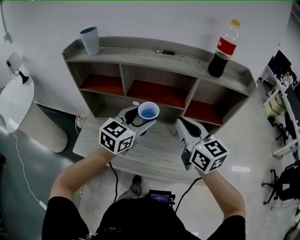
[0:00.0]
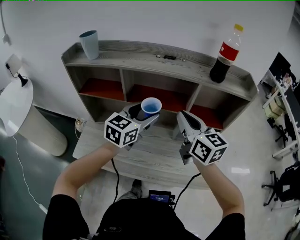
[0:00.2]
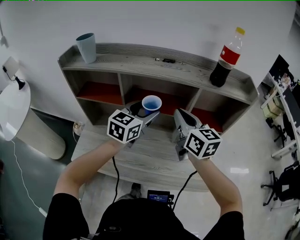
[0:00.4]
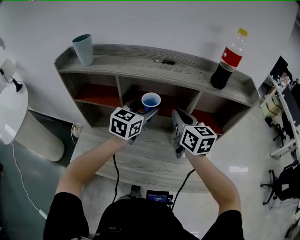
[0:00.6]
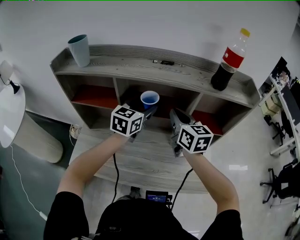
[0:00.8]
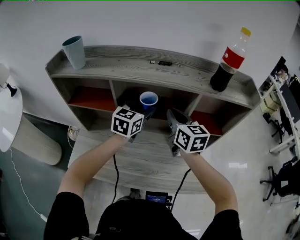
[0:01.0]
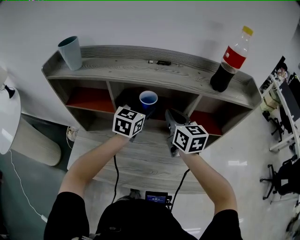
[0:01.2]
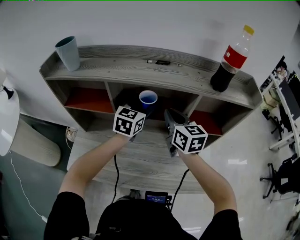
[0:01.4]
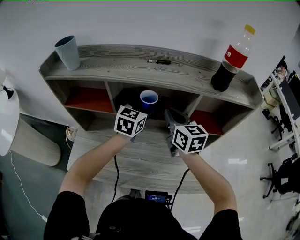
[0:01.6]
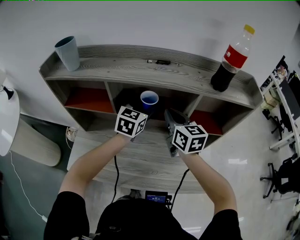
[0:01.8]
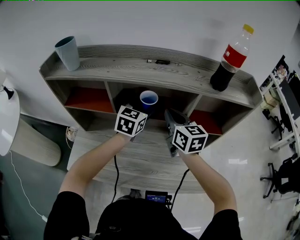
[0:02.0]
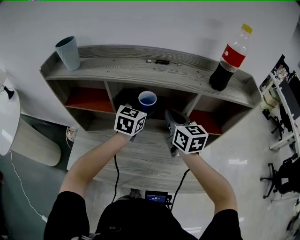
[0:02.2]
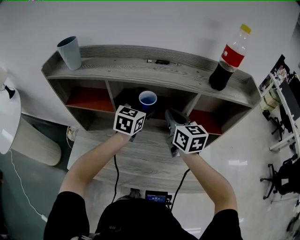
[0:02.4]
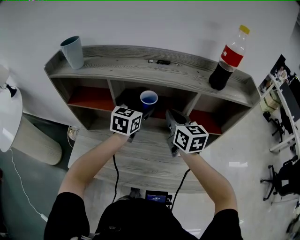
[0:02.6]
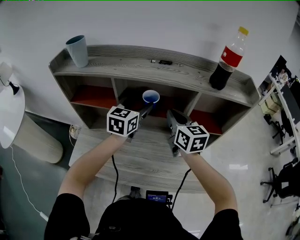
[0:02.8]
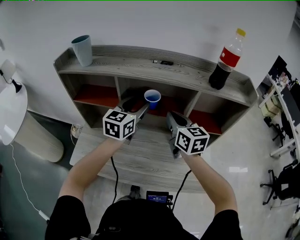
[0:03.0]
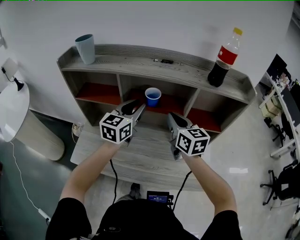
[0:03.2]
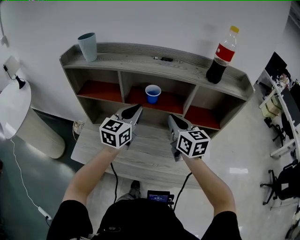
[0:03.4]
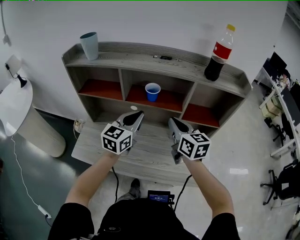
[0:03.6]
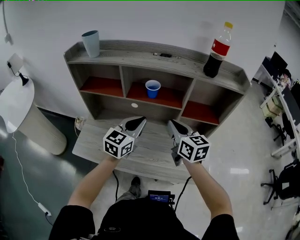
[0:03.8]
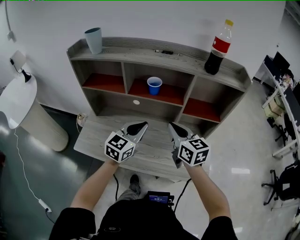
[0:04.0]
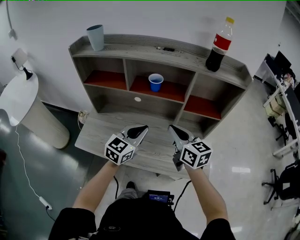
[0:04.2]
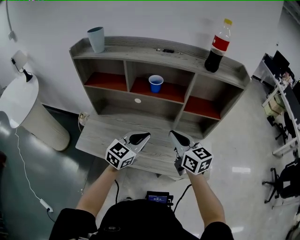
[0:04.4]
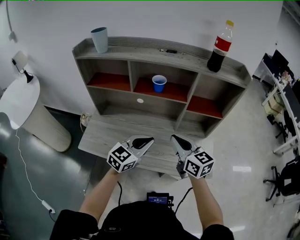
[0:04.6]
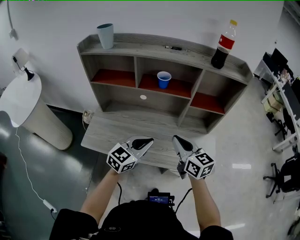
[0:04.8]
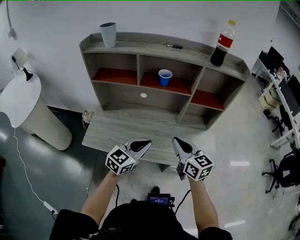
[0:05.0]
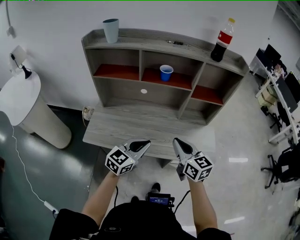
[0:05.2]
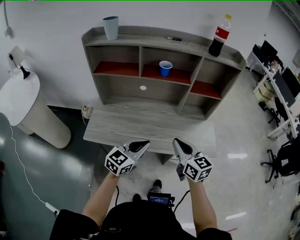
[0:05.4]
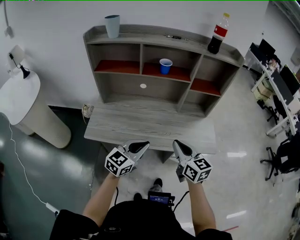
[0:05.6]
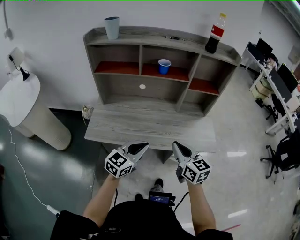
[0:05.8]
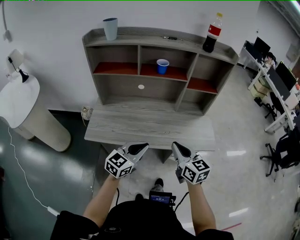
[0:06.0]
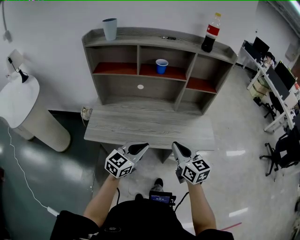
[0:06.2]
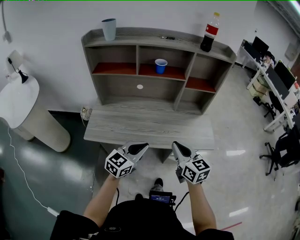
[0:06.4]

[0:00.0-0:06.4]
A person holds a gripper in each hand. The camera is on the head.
0:00.0 to 0:01.6: The two grippers go roughly 20 cm forward.
0:01.6 to 0:03.2: The right gripper goes roughly 5 cm backward, while the left gripper goes approximately 10 cm backward, to the left and upward, and closes its fingers.
0:03.2 to 0:04.8: The left gripper shifts roughly 25 cm backward and downward, and rotates roughly 20 degrees, while the right gripper shifts about 20 cm backward.
0:04.8 to 0:06.4: The grippers both shift backward by about 15 cm.

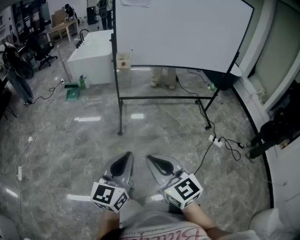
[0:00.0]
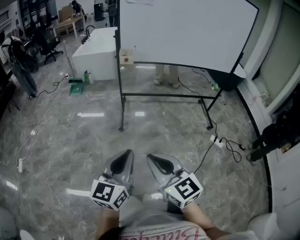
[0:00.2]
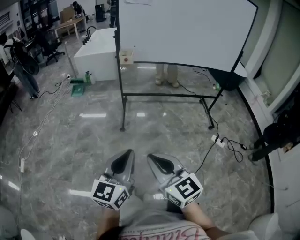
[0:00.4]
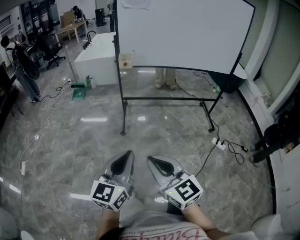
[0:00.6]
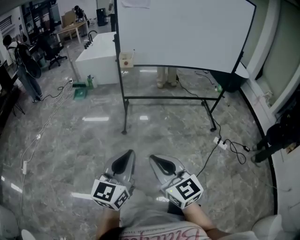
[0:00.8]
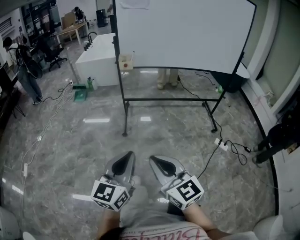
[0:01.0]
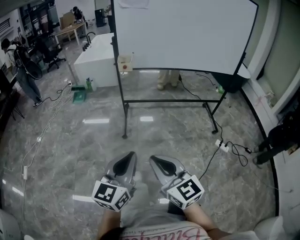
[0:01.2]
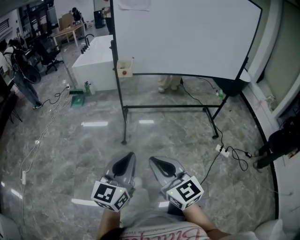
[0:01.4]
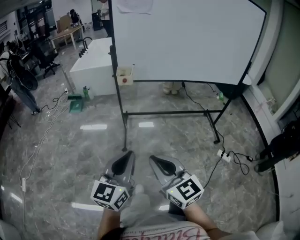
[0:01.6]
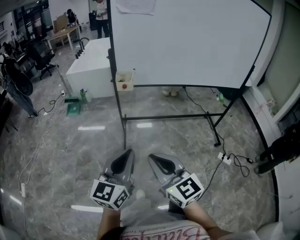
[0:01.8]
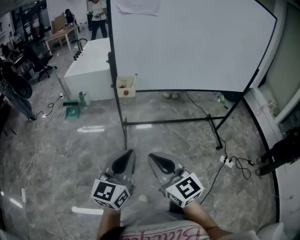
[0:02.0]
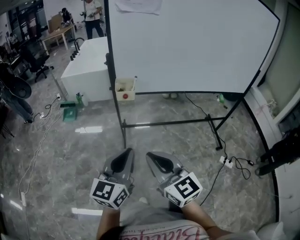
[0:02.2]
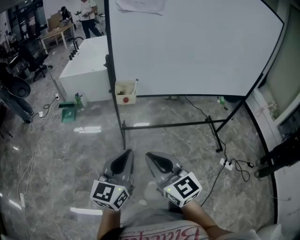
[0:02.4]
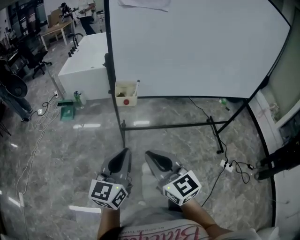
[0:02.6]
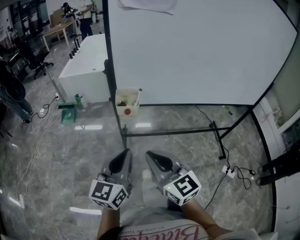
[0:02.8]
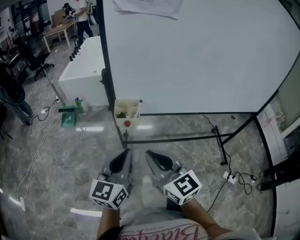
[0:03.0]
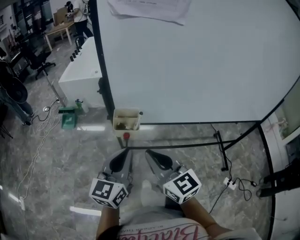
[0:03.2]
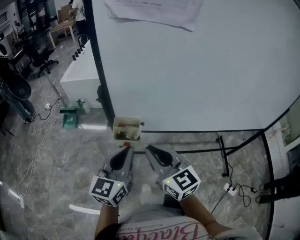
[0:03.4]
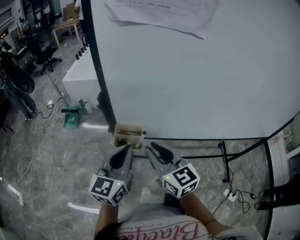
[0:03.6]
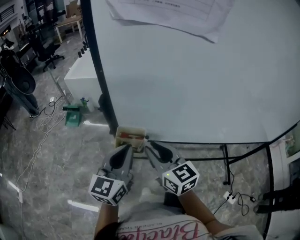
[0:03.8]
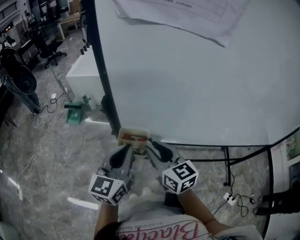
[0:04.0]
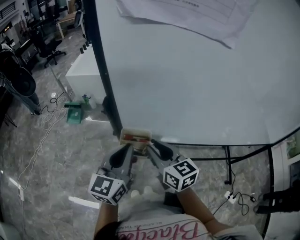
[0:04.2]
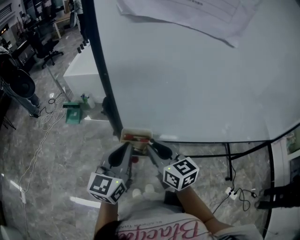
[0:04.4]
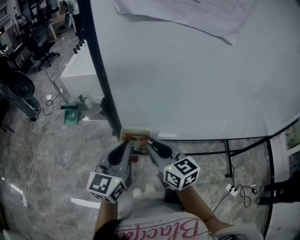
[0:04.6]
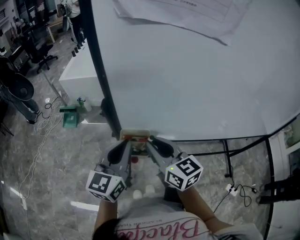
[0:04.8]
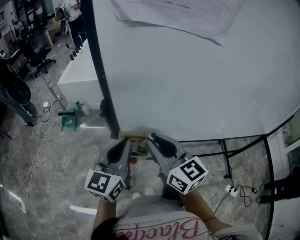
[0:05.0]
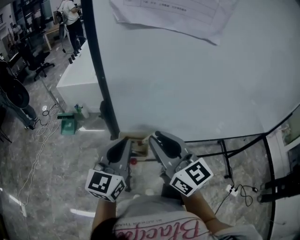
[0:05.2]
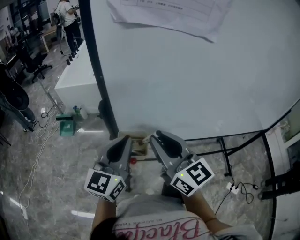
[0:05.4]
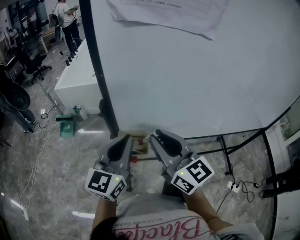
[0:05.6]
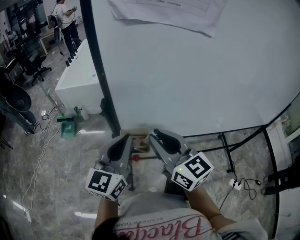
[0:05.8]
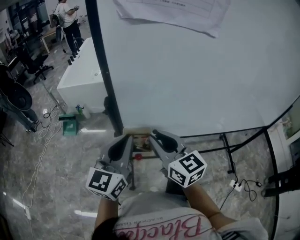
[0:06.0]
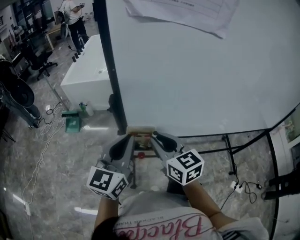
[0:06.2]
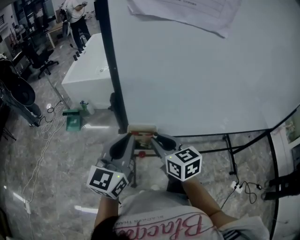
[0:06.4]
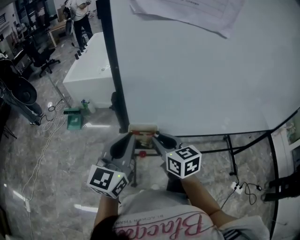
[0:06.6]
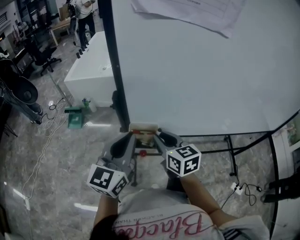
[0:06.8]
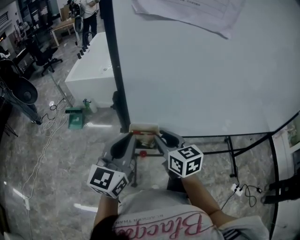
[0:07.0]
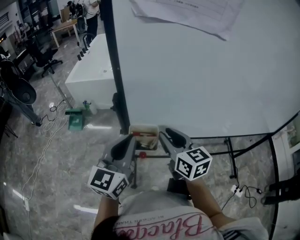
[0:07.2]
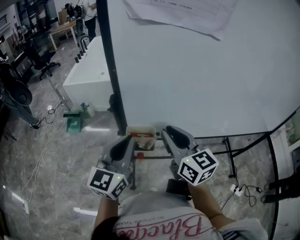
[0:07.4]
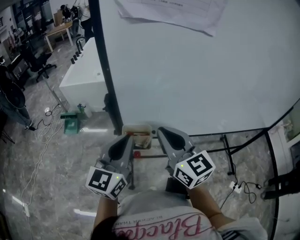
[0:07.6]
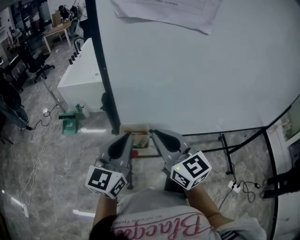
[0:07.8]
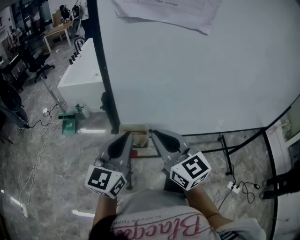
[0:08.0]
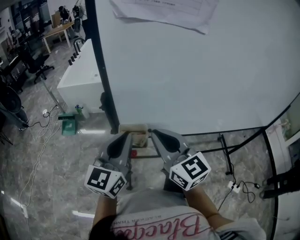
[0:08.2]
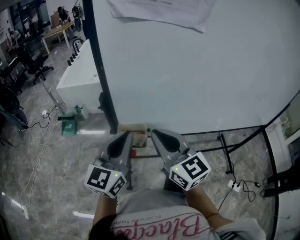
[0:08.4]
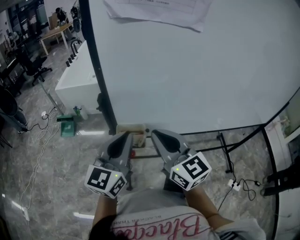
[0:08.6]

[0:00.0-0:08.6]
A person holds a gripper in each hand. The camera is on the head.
0:00.0 to 0:01.4: The two grippers go roughly 5 cm forward.
0:01.4 to 0:02.8: The two grippers go roughly 35 cm forward.
0:02.8 to 0:04.4: Both grippers move forward, approximately 20 cm.
0:04.4 to 0:05.8: The left gripper moves upward, about 5 cm; the right gripper heads upward, covering roughly 10 cm.
0:05.8 to 0:07.2: The right gripper moves downward, some 5 cm.
0:07.2 to 0:08.6: The right gripper moves upward, approximately 5 cm, and closes its fingers.

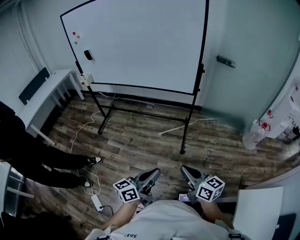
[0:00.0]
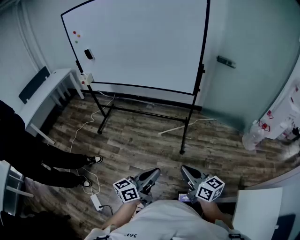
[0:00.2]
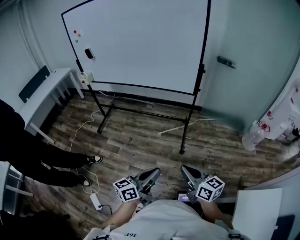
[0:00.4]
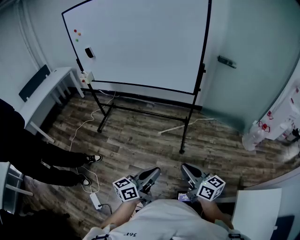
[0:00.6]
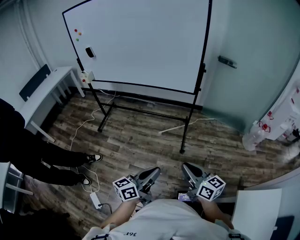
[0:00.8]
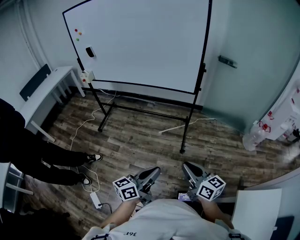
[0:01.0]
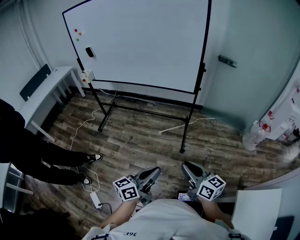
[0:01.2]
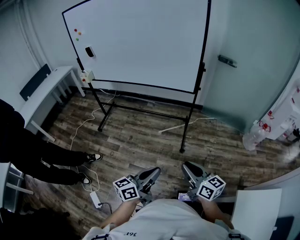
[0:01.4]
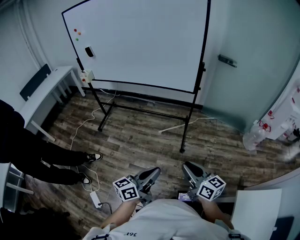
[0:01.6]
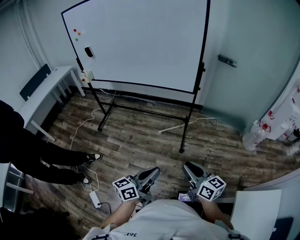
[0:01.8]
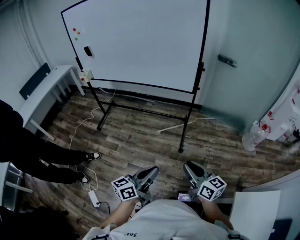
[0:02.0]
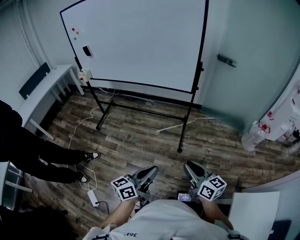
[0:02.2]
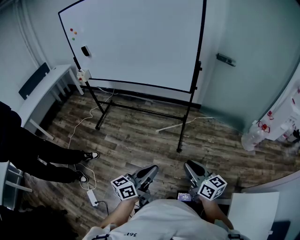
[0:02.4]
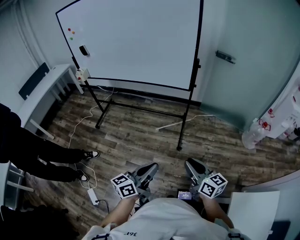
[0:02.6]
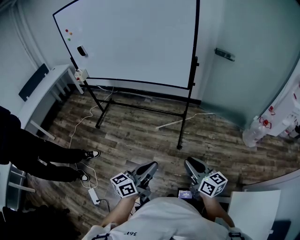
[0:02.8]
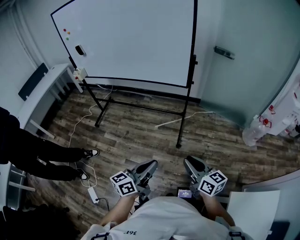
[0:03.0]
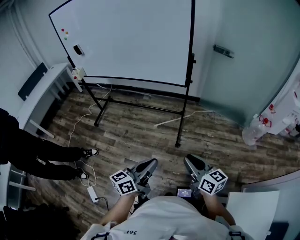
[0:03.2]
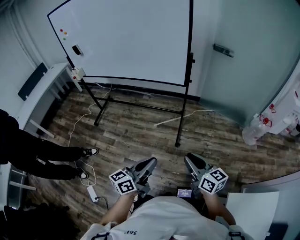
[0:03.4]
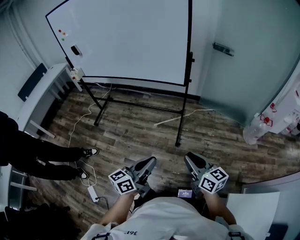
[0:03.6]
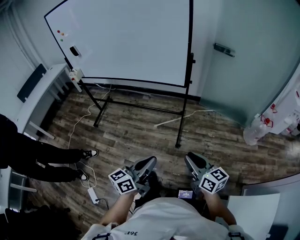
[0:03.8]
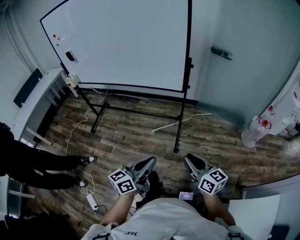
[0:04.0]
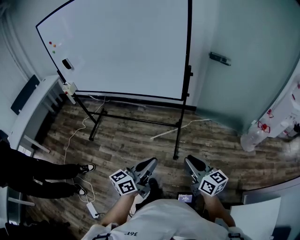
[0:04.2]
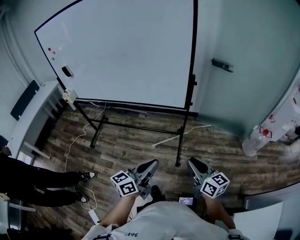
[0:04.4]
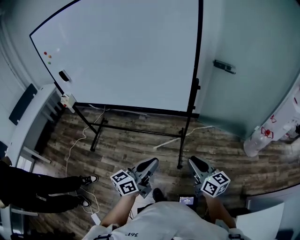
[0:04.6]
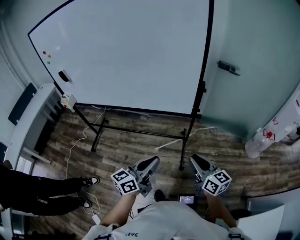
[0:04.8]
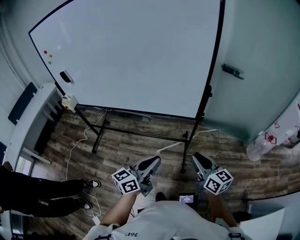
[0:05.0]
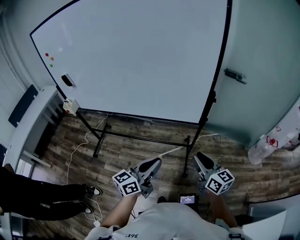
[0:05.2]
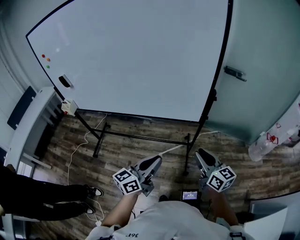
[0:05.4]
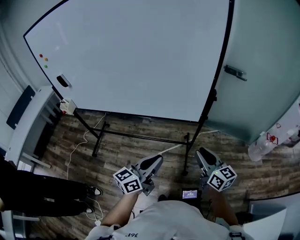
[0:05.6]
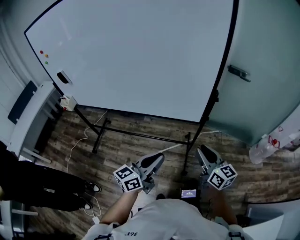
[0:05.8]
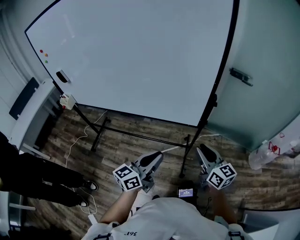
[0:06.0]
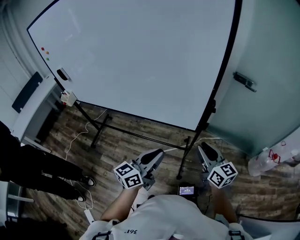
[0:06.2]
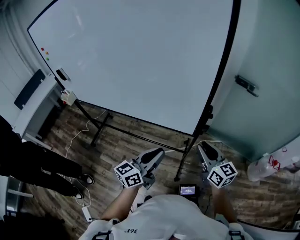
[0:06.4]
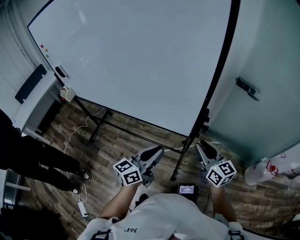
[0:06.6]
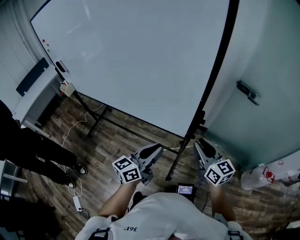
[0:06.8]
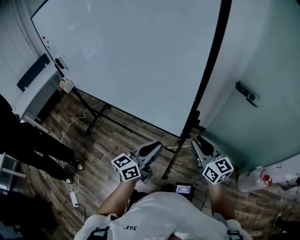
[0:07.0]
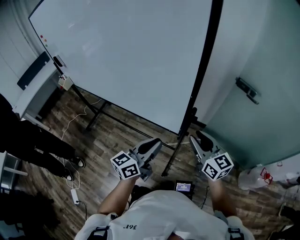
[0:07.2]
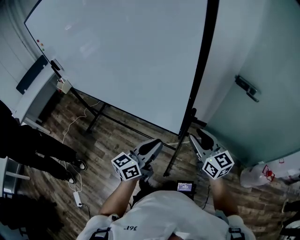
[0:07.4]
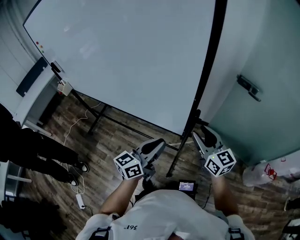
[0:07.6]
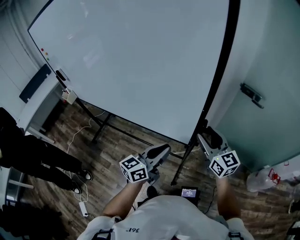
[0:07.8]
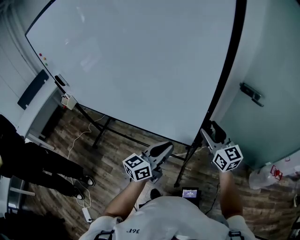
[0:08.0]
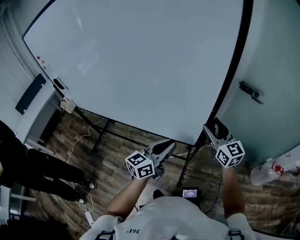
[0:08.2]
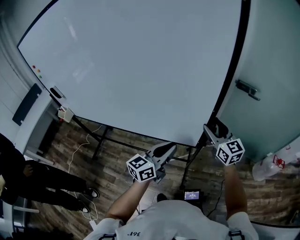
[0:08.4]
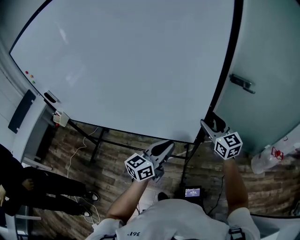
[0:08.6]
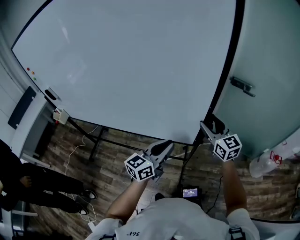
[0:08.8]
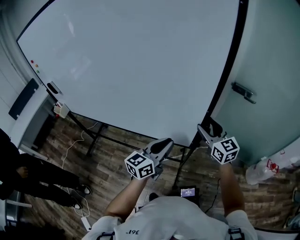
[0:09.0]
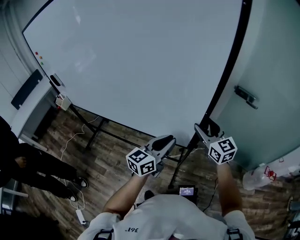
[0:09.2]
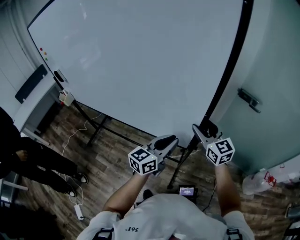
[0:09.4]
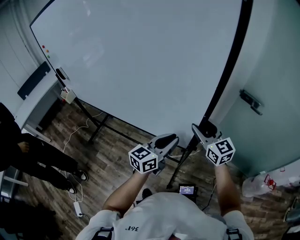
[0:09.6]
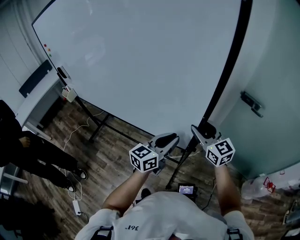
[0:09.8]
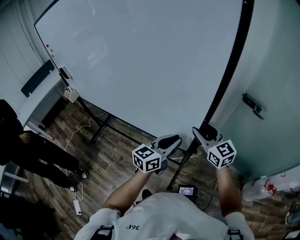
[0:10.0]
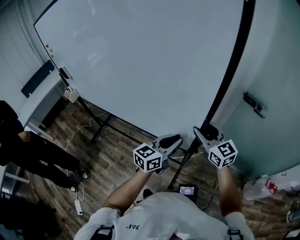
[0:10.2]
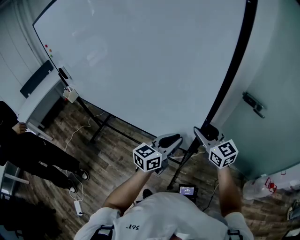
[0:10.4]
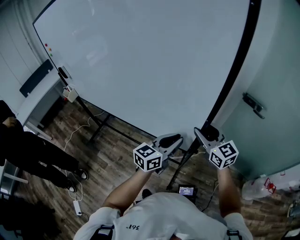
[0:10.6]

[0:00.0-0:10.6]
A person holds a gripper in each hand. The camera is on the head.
0:00.0 to 0:01.6: The grippers move only a little.
0:01.6 to 0:03.0: Both grippers move to the right, approximately 10 cm.
0:03.0 to 0:04.6: Both grippers travel together forward, approximately 25 cm.
0:04.6 to 0:06.0: The grippers both shift forward by some 15 cm.
0:06.0 to 0:07.6: The right gripper heads forward and to the right, covering approximately 20 cm; the left gripper moves to the right and forward, approximately 20 cm.
0:07.6 to 0:09.0: The right gripper is displaced forward by about 5 cm. The left gripper shifts by some 5 cm.
0:09.0 to 0:10.6: The left gripper goes approximately 5 cm to the right.
